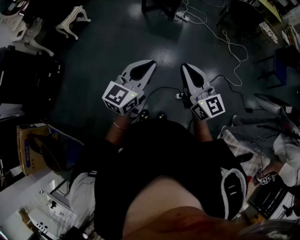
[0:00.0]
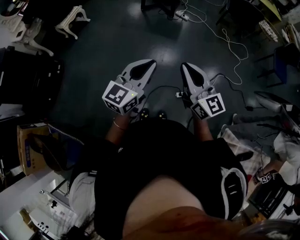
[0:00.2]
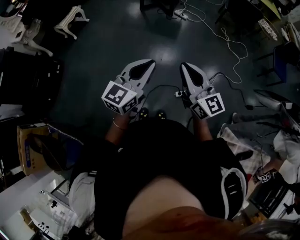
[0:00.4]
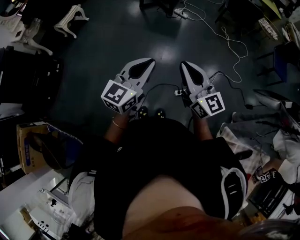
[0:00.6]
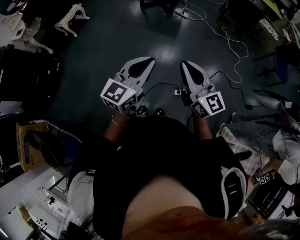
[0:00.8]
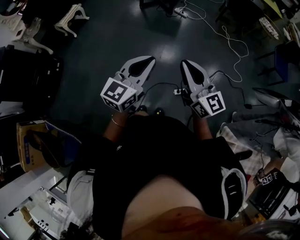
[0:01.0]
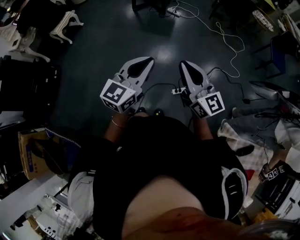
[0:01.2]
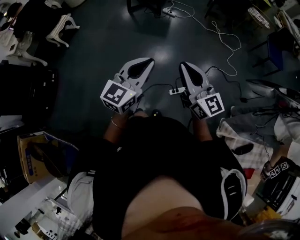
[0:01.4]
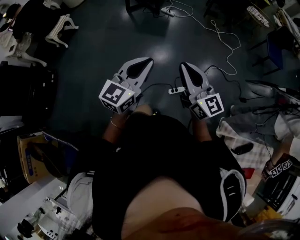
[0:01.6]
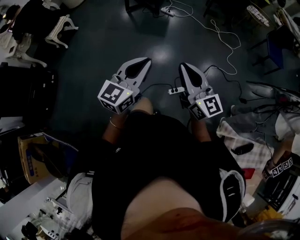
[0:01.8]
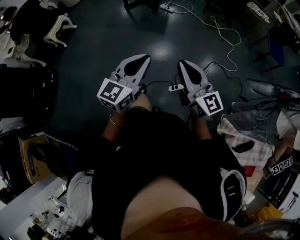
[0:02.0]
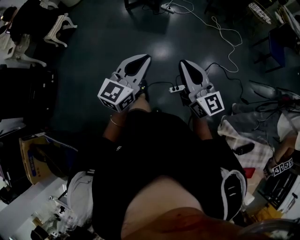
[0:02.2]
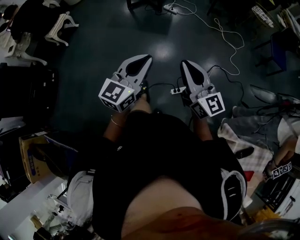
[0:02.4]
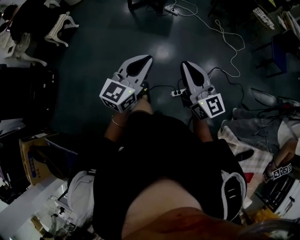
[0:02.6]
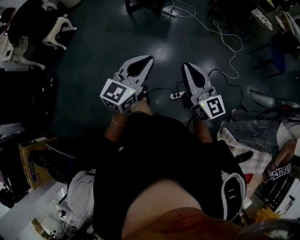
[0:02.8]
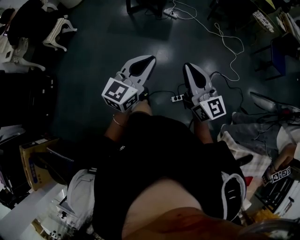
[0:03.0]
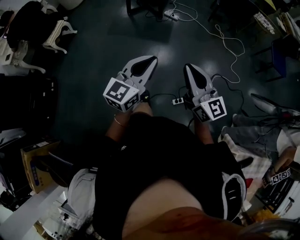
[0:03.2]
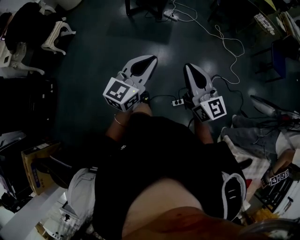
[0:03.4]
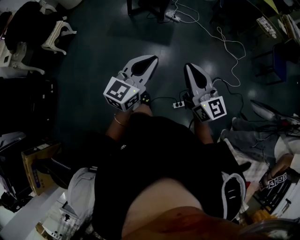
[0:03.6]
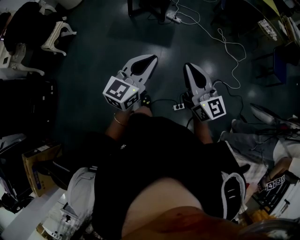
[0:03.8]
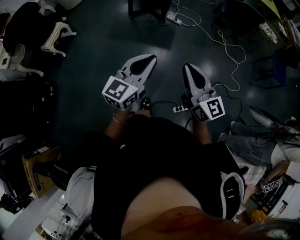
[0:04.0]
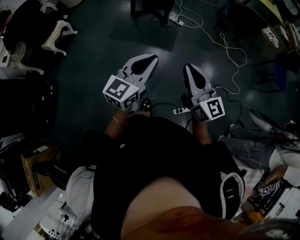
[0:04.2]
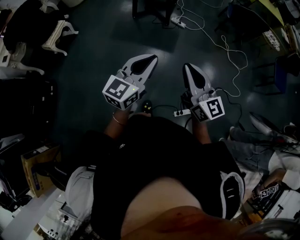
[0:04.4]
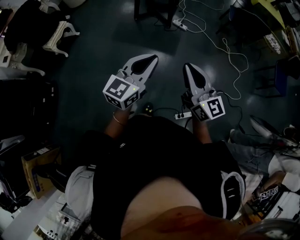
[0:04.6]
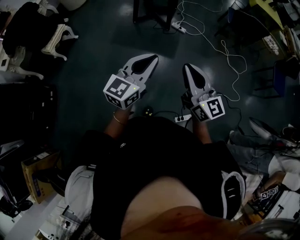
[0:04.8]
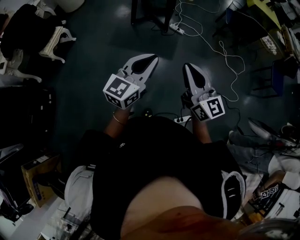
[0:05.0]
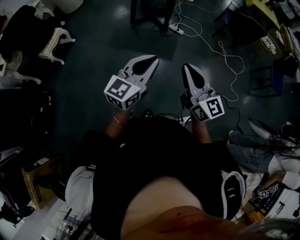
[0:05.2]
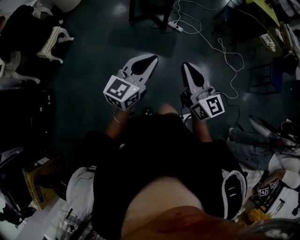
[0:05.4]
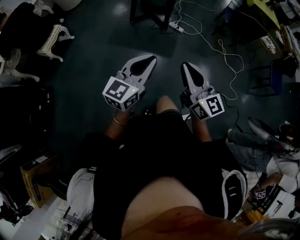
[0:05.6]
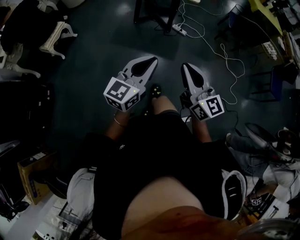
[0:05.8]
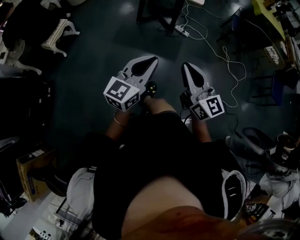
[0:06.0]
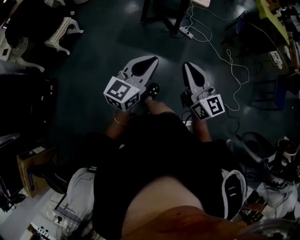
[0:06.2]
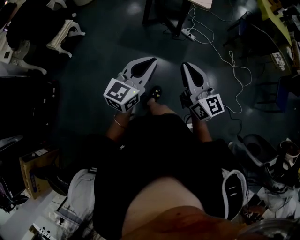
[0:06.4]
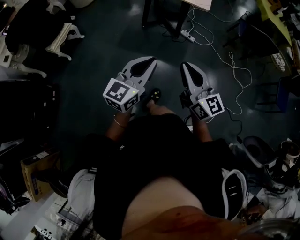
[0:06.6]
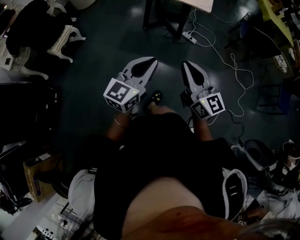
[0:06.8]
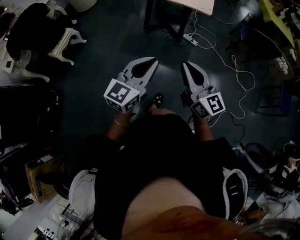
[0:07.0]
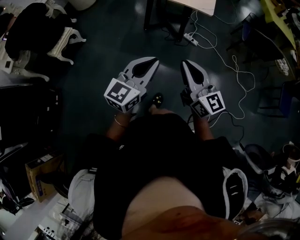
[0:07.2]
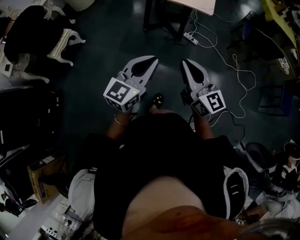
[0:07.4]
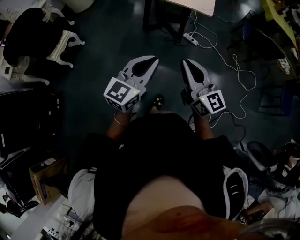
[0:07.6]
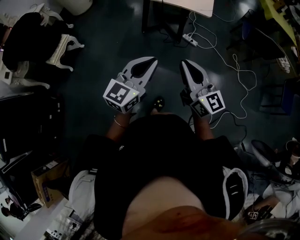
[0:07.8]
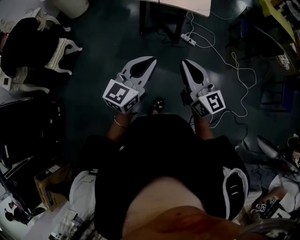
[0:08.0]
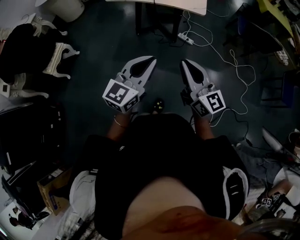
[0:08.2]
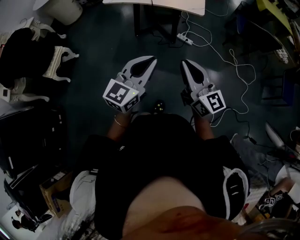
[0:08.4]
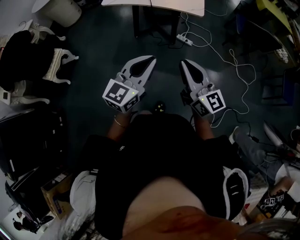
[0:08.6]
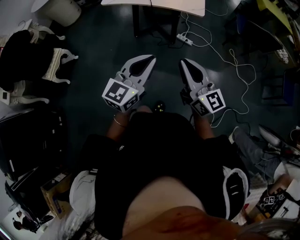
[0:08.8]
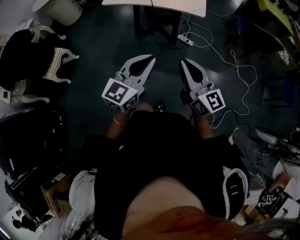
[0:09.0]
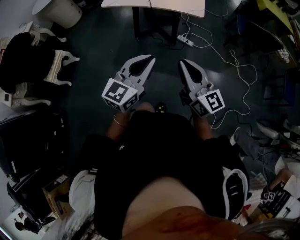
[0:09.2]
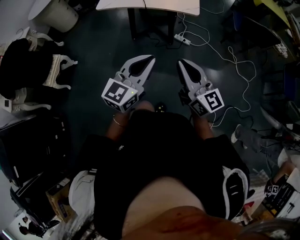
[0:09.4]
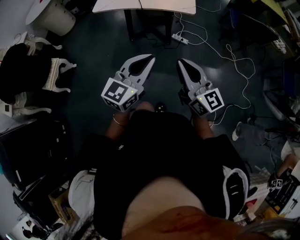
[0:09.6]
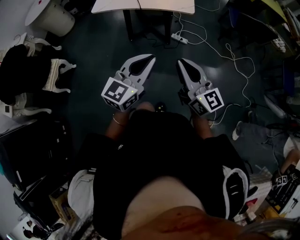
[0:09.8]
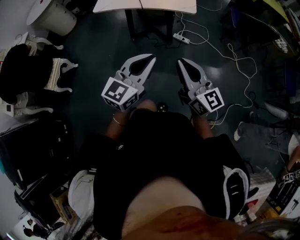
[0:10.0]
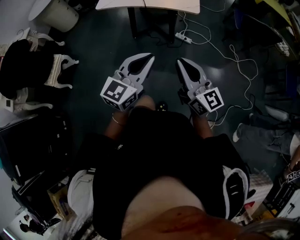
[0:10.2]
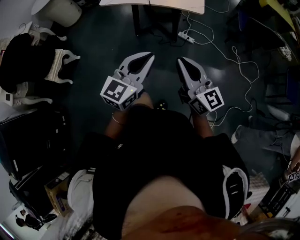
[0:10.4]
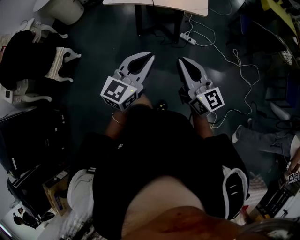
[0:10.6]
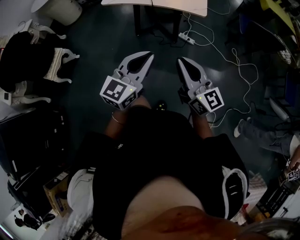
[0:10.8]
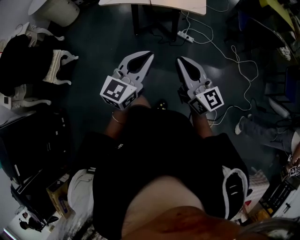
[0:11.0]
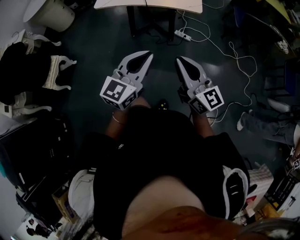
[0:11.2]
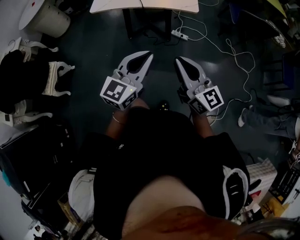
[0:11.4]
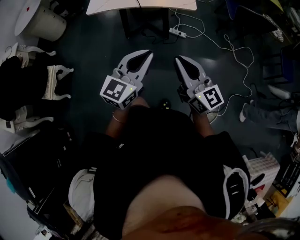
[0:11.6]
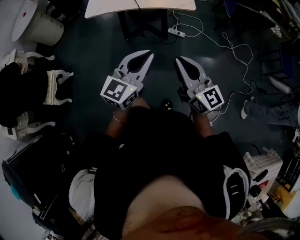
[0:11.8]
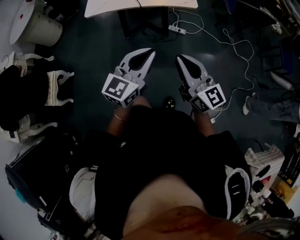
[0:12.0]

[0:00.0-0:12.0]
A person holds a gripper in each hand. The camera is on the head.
0:00.0 to 0:01.6: The grippers both shift to the right by roughly 10 cm.
0:01.6 to 0:03.0: The grippers both shift forward by approximately 10 cm.
0:03.0 to 0:04.4: The grippers both shift forward and to the left by about 20 cm.
0:04.4 to 0:06.0: Both grippers move to the left and forward, roughly 10 cm.
0:06.0 to 0:07.6: The two grippers go about 15 cm forward.
0:07.6 to 0:09.0: Both grippers move forward, roughly 10 cm.
0:09.0 to 0:10.4: The grippers stay close to where they were, moving slightly.
0:10.4 to 0:12.0: The right gripper is displaced to the left by about 5 cm; the left gripper shifts roughly 10 cm forward and to the left.

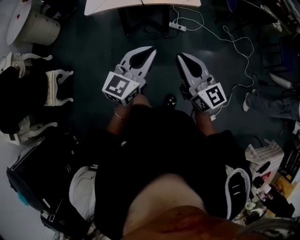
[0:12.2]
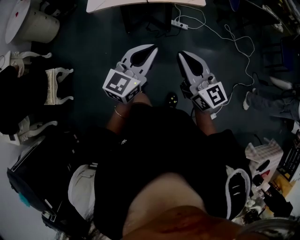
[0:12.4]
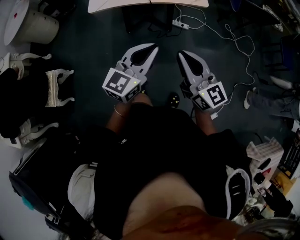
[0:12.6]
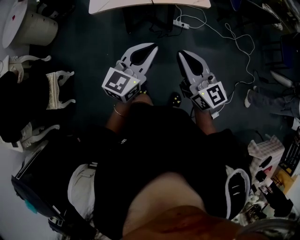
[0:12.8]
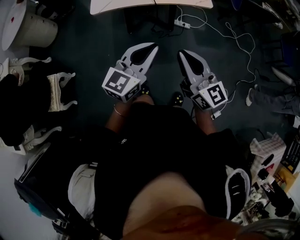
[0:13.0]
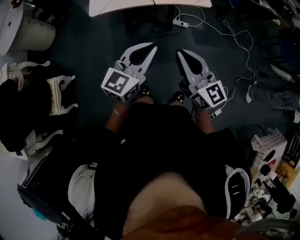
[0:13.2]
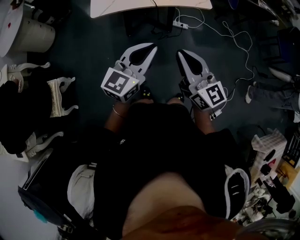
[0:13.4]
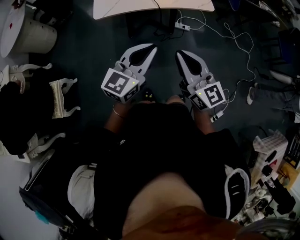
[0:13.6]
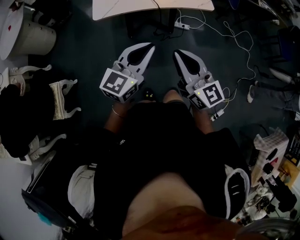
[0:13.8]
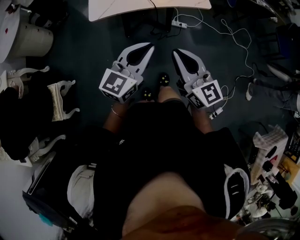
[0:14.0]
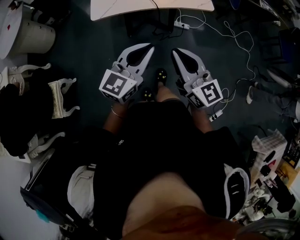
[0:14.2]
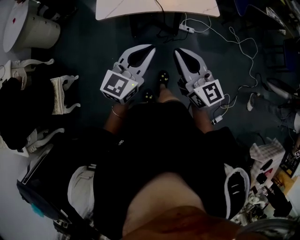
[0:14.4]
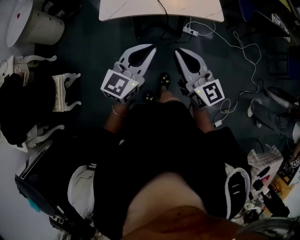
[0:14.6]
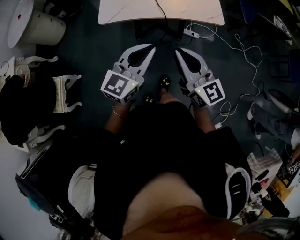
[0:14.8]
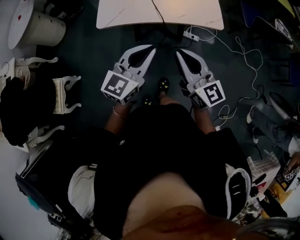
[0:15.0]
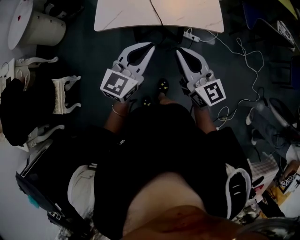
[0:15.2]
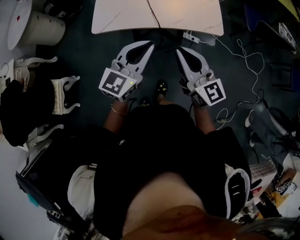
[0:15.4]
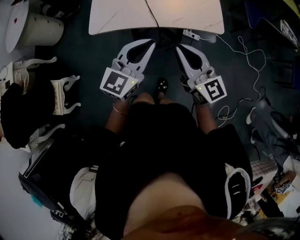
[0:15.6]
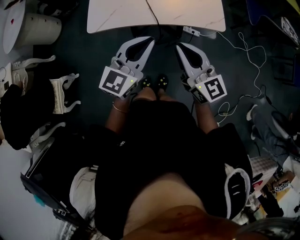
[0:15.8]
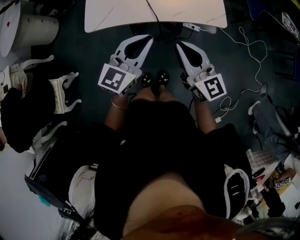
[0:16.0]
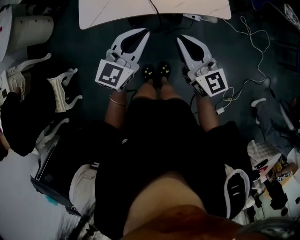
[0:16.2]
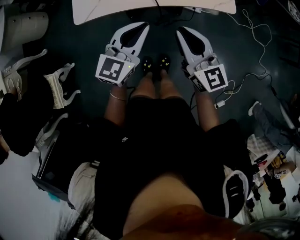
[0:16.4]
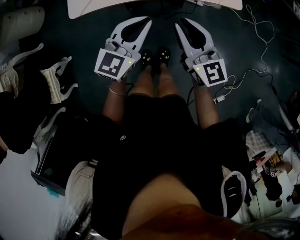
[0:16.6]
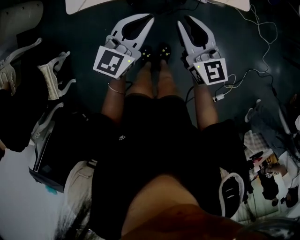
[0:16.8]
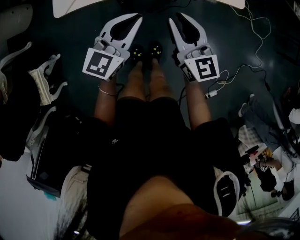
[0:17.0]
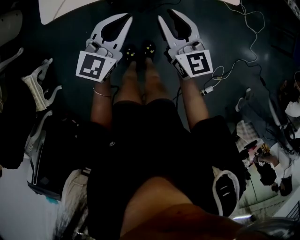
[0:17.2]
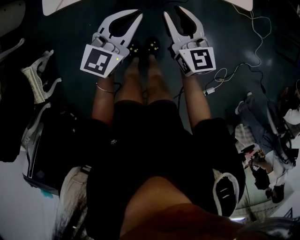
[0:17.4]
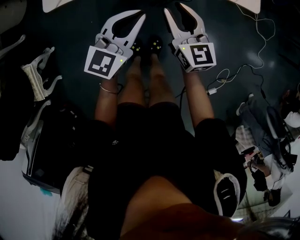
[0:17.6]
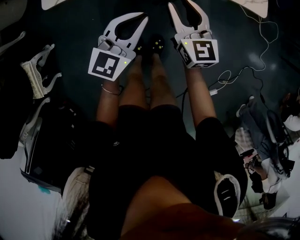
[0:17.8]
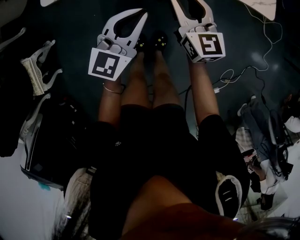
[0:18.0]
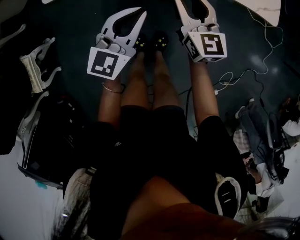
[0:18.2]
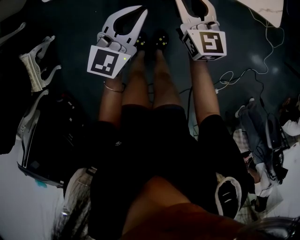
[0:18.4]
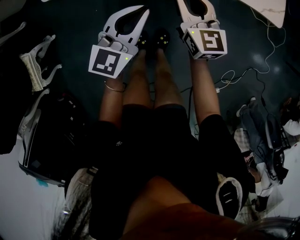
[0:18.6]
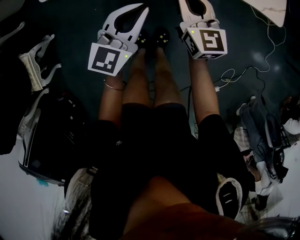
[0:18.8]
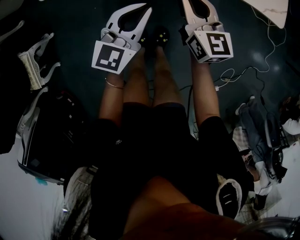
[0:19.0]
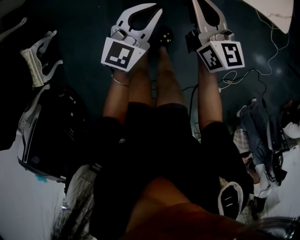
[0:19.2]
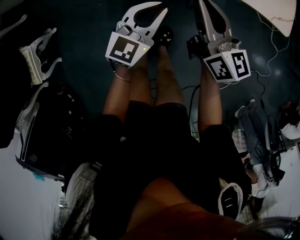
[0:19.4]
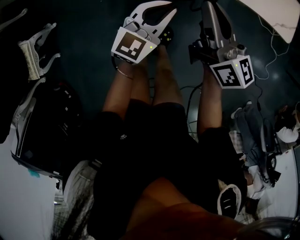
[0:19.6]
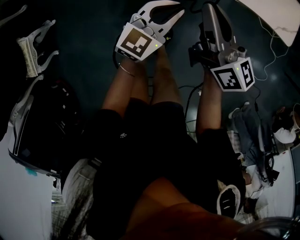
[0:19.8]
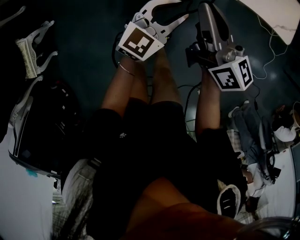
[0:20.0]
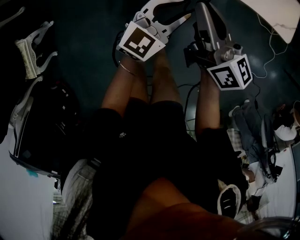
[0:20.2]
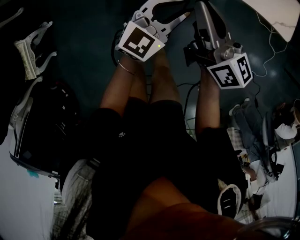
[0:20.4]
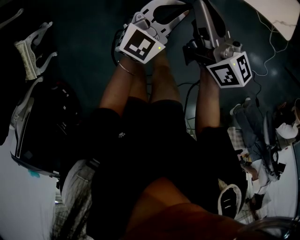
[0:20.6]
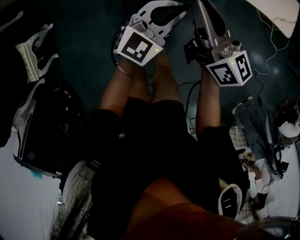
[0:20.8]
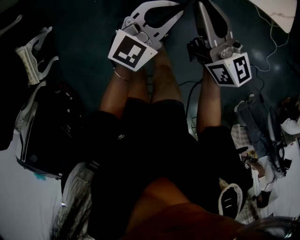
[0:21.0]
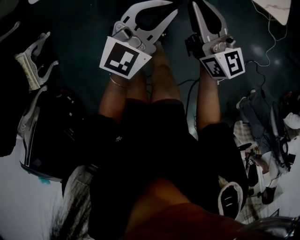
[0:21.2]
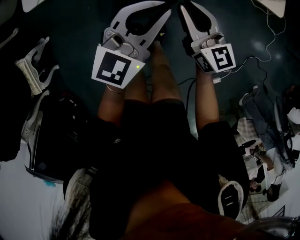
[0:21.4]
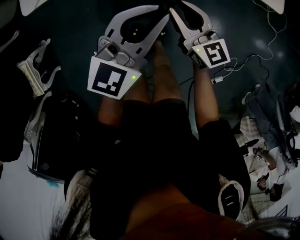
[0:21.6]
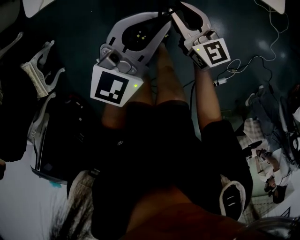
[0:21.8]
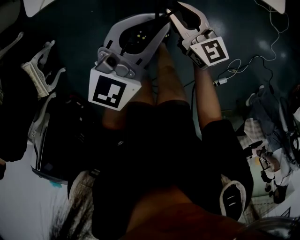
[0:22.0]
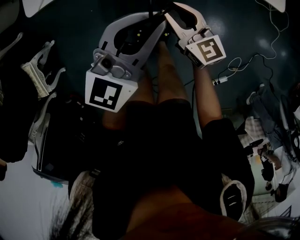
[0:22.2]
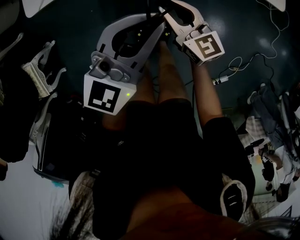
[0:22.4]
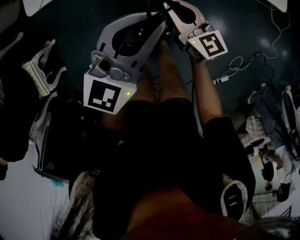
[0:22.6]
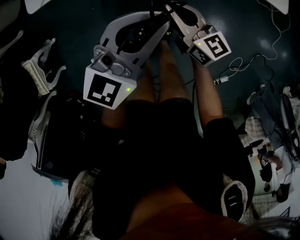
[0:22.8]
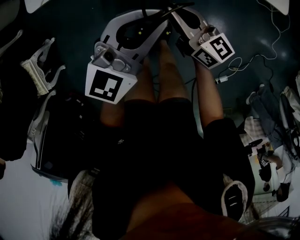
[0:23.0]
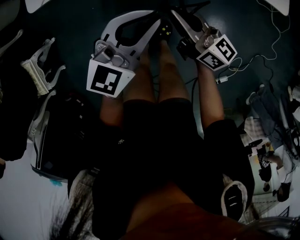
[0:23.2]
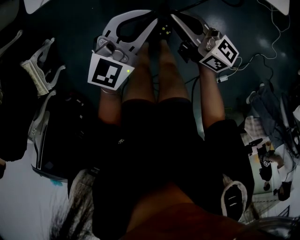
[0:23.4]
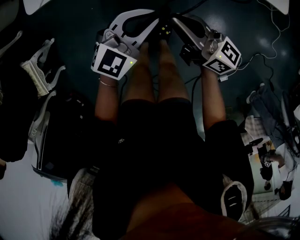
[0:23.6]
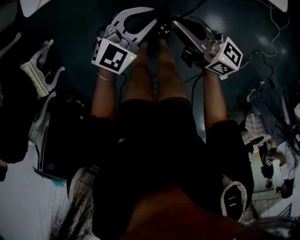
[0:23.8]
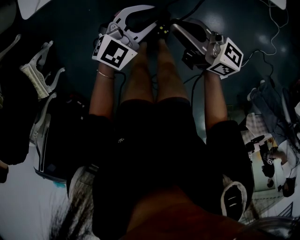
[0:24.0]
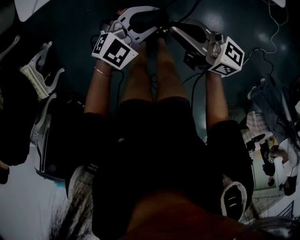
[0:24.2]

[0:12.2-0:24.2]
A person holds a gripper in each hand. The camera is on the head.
0:12.2 to 0:13.8: The right gripper shifts some 15 cm to the left, while the left gripper shifts roughly 15 cm to the left and forward.
0:13.8 to 0:15.2: Both grippers travel together forward, about 15 cm.
0:15.2 to 0:16.6: Both grippers move downward and forward, roughly 15 cm.
0:16.6 to 0:18.2: The left gripper heads downward, covering approximately 15 cm, while the right gripper is displaced downward and forward by some 20 cm.
0:18.2 to 0:19.8: The right gripper shifts some 10 cm upward, swivels some 30 degrees, and closes, while the left gripper shifts about 5 cm to the right.
0:19.8 to 0:21.2: The left gripper heads upward, covering about 5 cm.
0:21.2 to 0:22.6: The right gripper shifts about 5 cm downward. Meanwhile the left gripper moves upward, approximately 10 cm.
0:22.6 to 0:24.2: The left gripper heads downward, covering some 15 cm, and turns by about 30 degrees. The right gripper travels upward and backward by approximately 10 cm, and turns by about 30 degrees.
